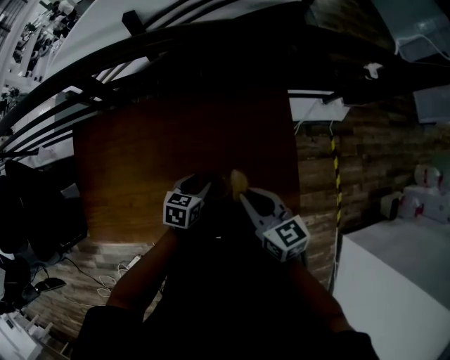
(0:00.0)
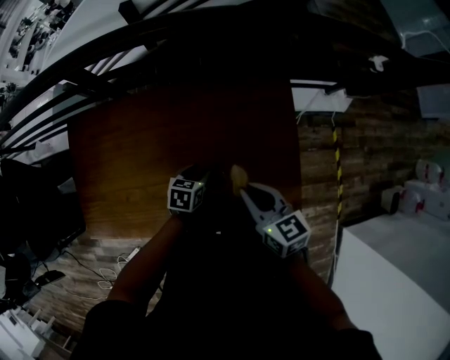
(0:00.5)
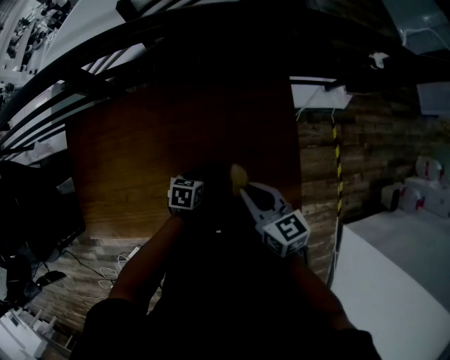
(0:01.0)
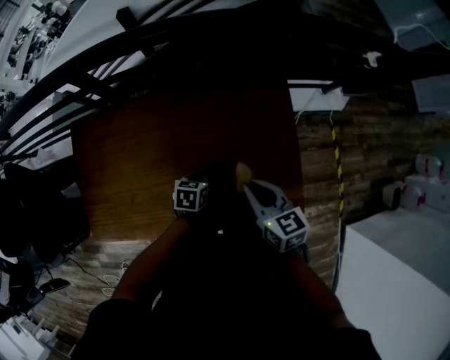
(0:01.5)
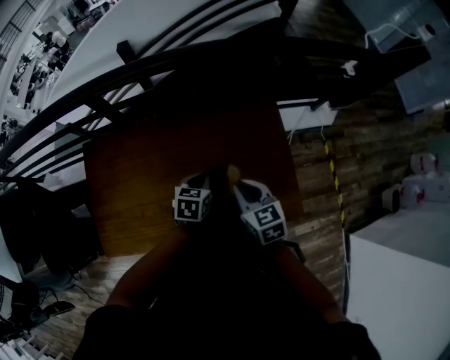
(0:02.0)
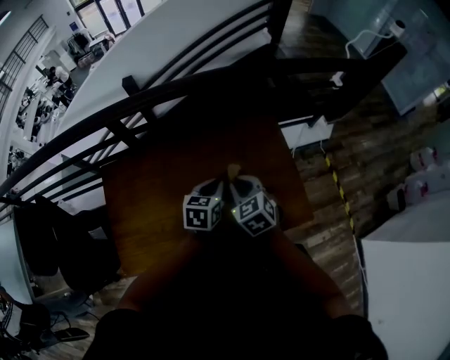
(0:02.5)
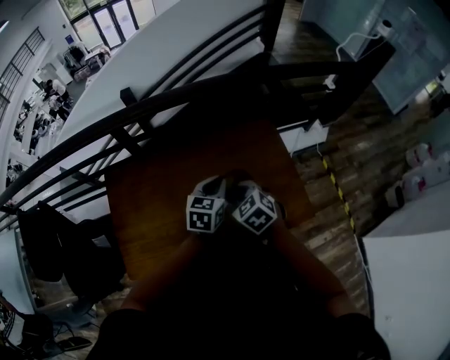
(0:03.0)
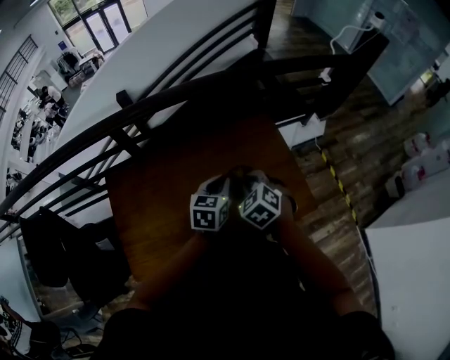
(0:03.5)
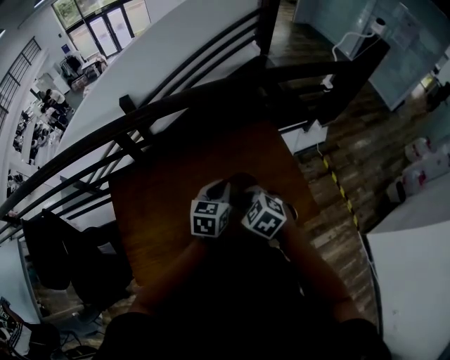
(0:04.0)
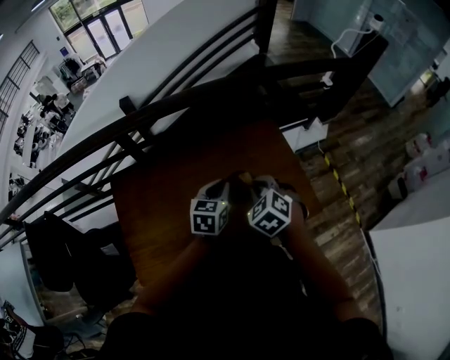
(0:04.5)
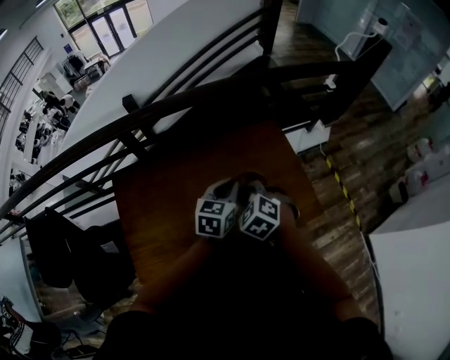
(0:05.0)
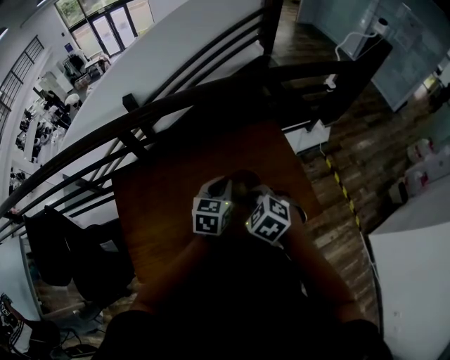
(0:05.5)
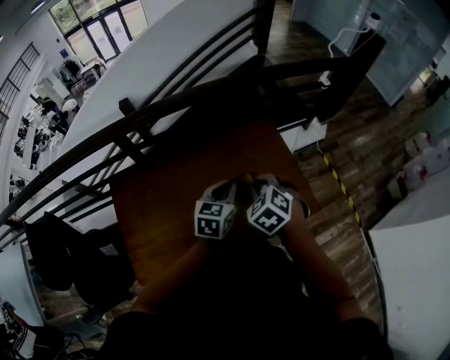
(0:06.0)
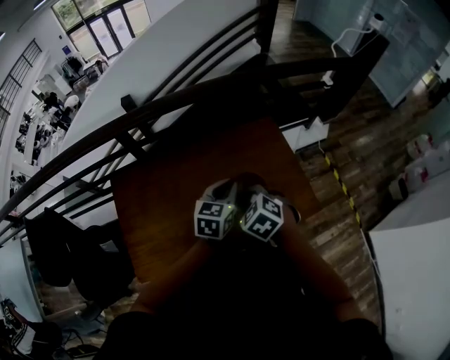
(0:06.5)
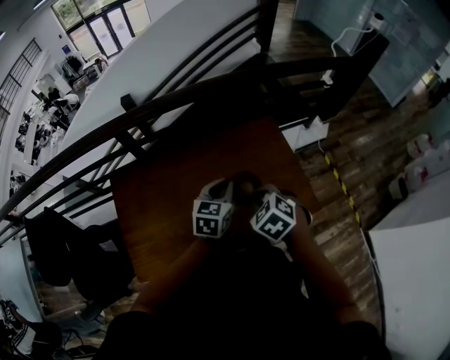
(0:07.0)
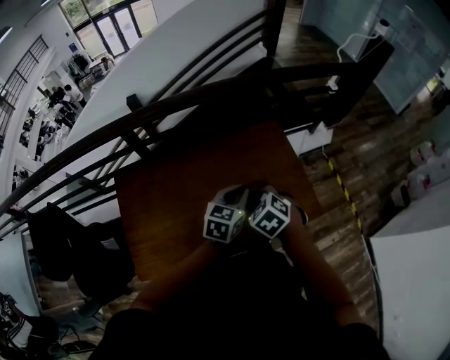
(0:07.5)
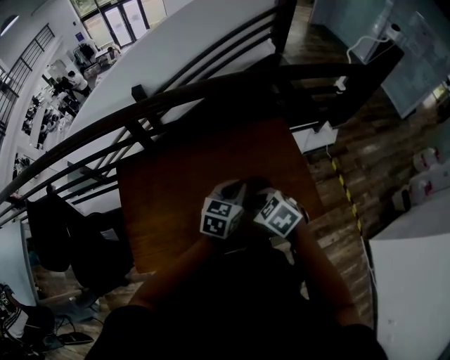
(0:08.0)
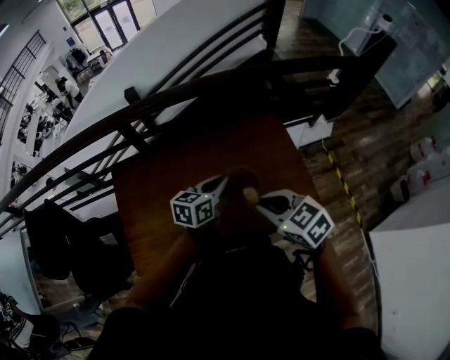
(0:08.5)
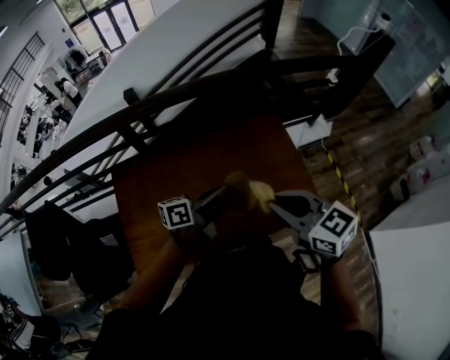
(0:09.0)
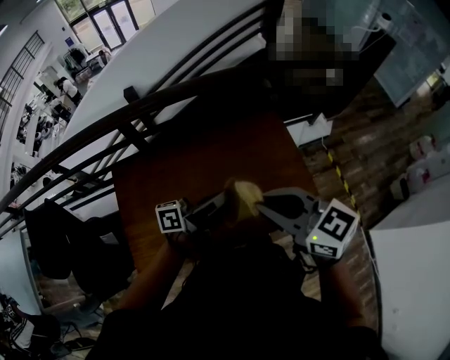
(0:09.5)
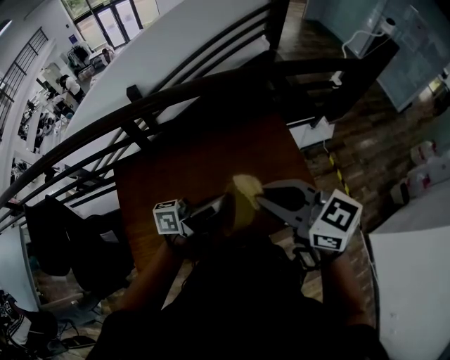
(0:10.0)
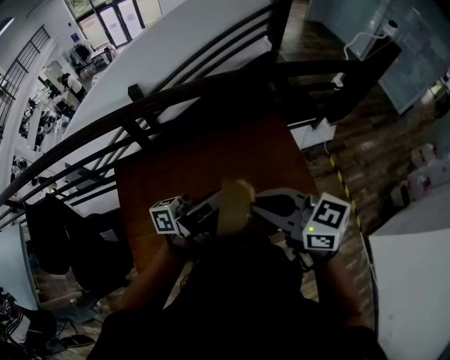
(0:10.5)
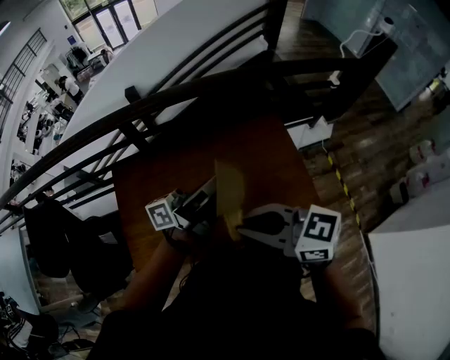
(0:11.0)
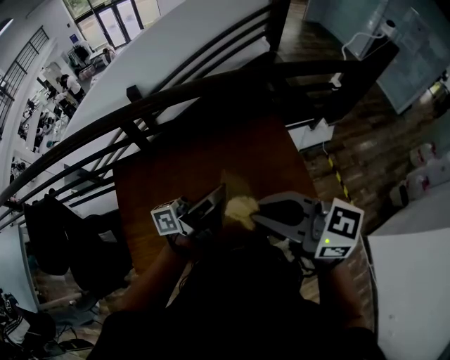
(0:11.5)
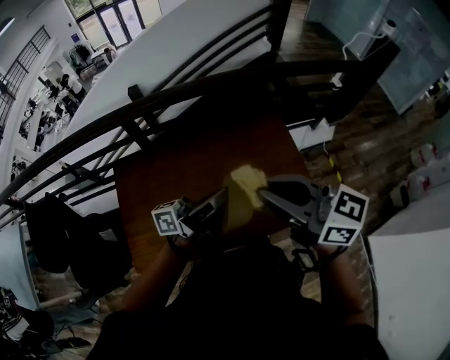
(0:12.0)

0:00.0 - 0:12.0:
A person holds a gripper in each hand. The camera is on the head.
0:00.0 - 0:02.0: The left gripper heads upward, covering roughly 5 cm, and closes up.
0:02.0 - 0:04.0: The right gripper moves to the left, backward and upward, roughly 10 cm, and turns by about 30 degrees, while the left gripper moves upward, approximately 15 cm, and turns by some 20 degrees.
0:04.0 - 0:06.0: The right gripper travels to the right by some 5 cm.
0:06.0 - 0:08.0: The right gripper travels backward by roughly 5 cm, and changes its angle by some 20 degrees.
0:08.0 - 0:10.0: The left gripper goes about 10 cm upward and backward, and tilts its fingers roughly 50 degrees upward; the right gripper shifts some 20 cm upward, and points its fingers some 40 degrees further upward.

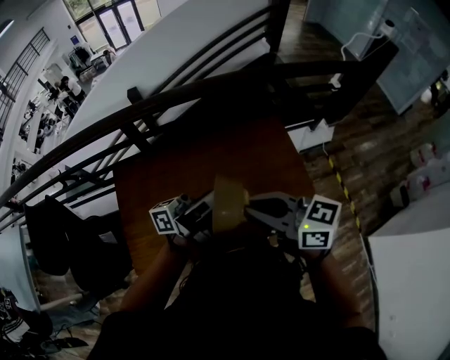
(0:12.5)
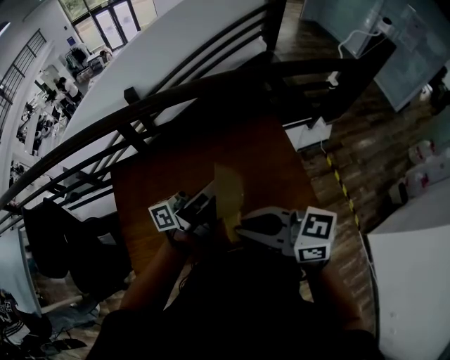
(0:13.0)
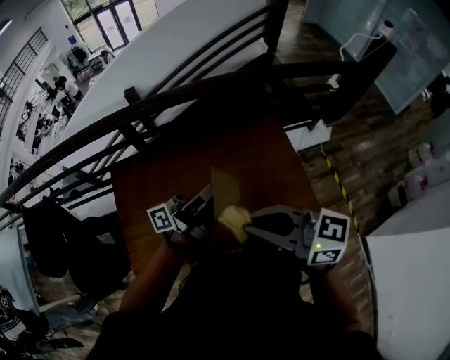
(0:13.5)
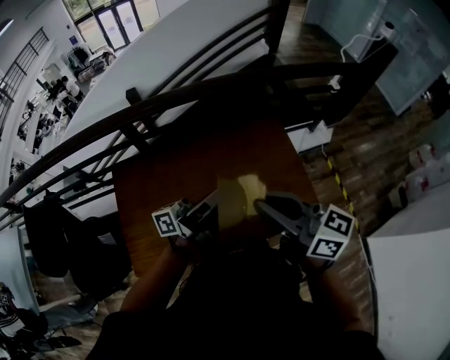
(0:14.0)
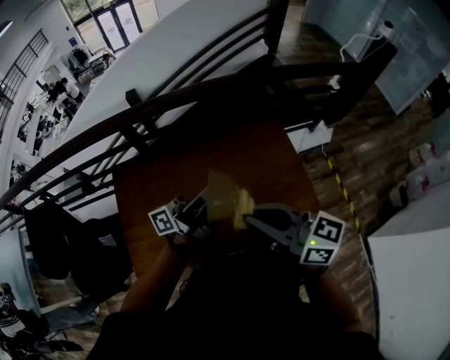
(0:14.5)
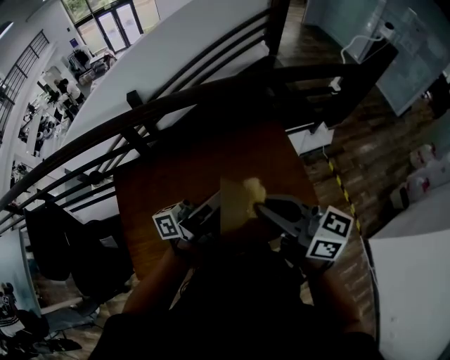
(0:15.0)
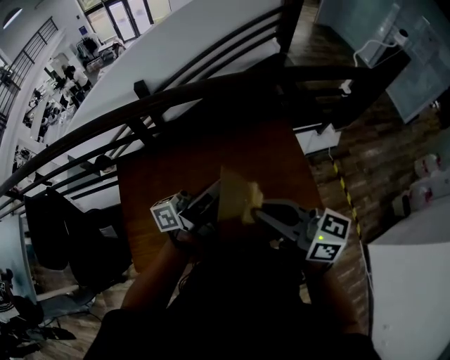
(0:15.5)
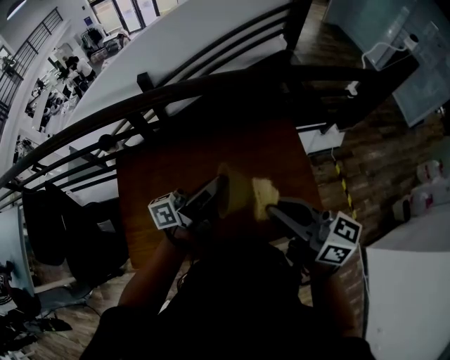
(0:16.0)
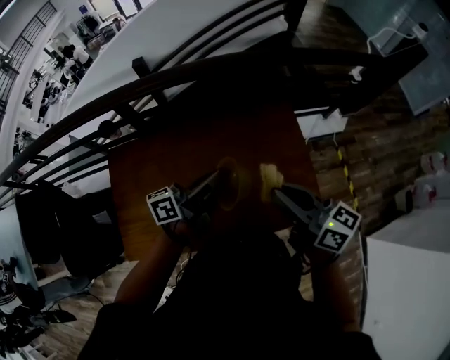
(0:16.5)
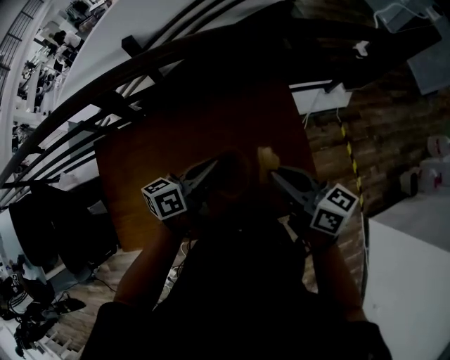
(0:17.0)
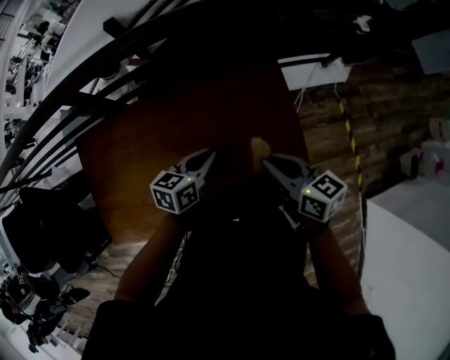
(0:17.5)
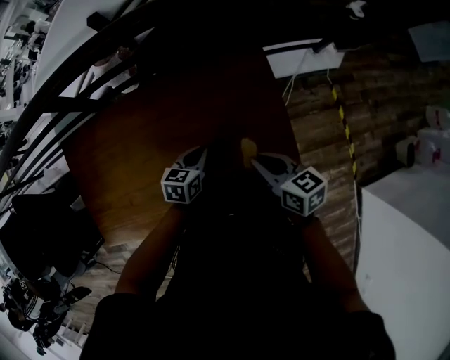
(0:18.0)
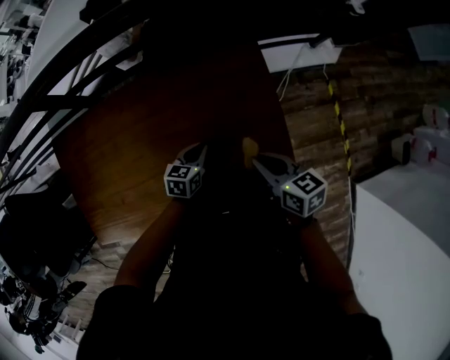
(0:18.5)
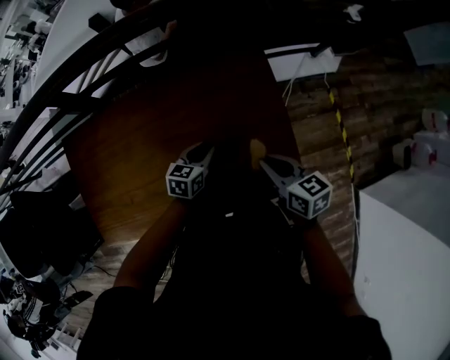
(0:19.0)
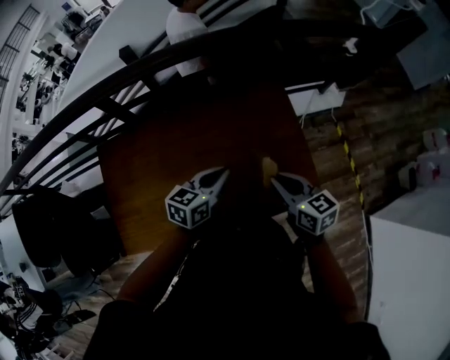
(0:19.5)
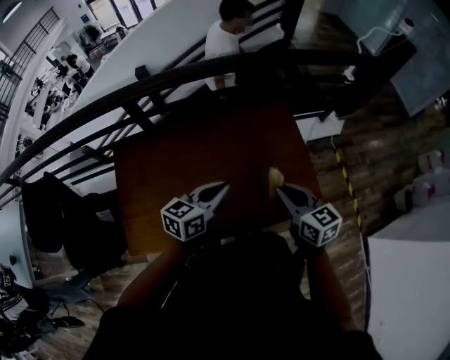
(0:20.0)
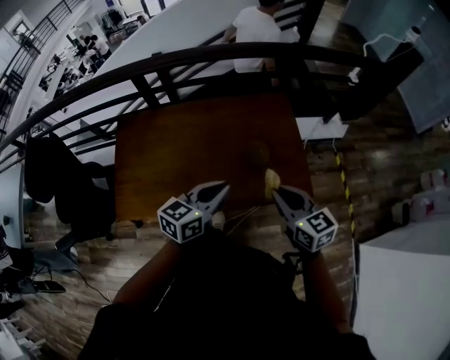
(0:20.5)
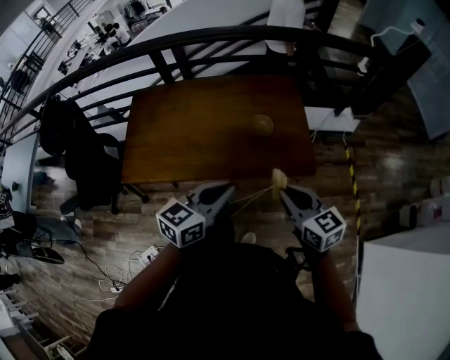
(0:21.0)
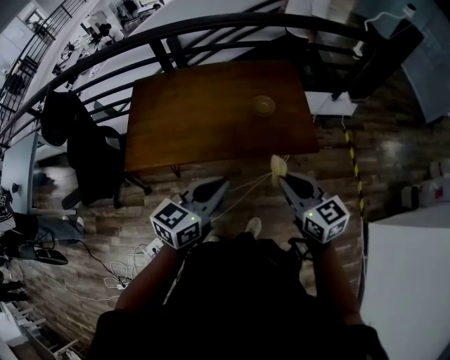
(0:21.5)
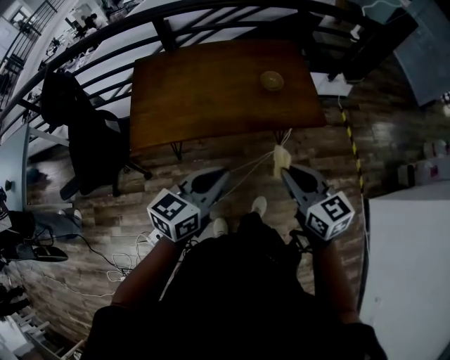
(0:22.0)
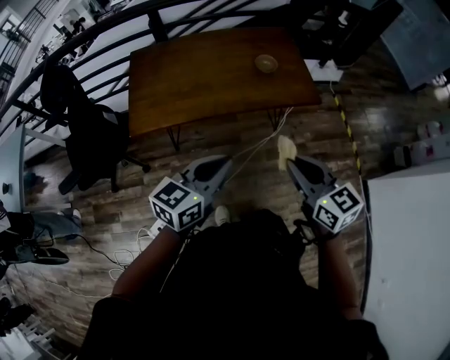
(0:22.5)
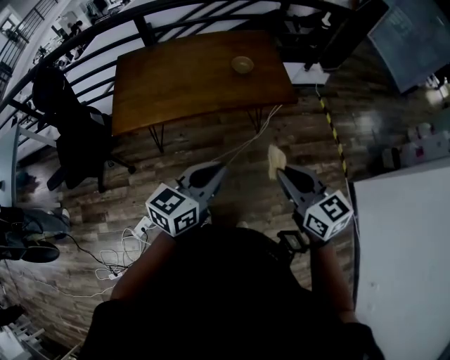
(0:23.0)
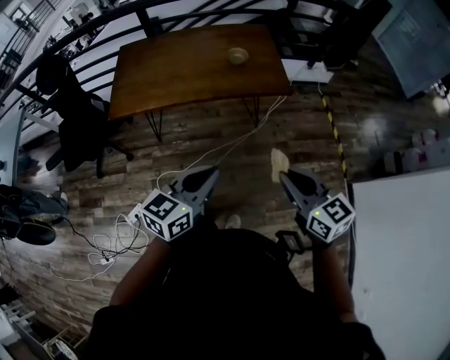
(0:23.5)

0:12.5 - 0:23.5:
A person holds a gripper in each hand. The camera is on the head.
0:12.5 - 0:14.5: The grippers stay close to where they were, moving slightly.
0:14.5 - 0:16.0: The grippers move only a little.
0:16.0 - 0:18.0: The right gripper heads downward, to the right and forward, covering about 40 cm, and tilts its fingers roughly 30 degrees downward; the left gripper shifts some 40 cm downward and to the right, and angles its fingers downward, by approximately 70 degrees.
0:18.0 - 0:20.0: Both grippers travel together upward, backward and to the left, about 25 cm. The right gripper rotates some 20 degrees. Meanwhile the left gripper turns by about 30 degrees.
0:20.0 - 0:21.5: The two grippers go approximately 30 cm backward.
0:21.5 - 0:23.5: Both grippers travel together backward, approximately 25 cm.

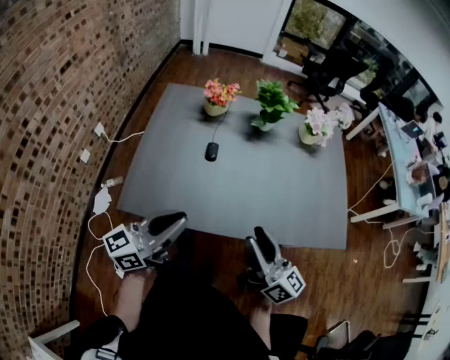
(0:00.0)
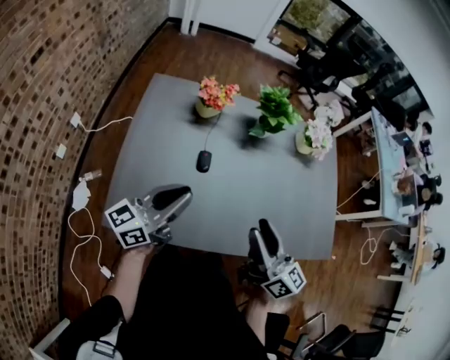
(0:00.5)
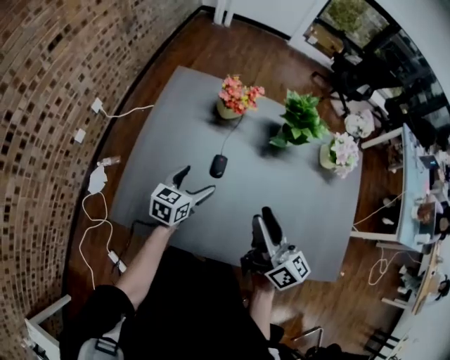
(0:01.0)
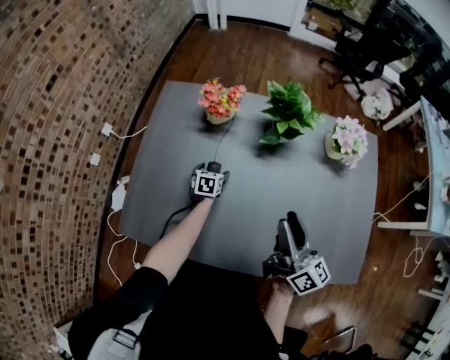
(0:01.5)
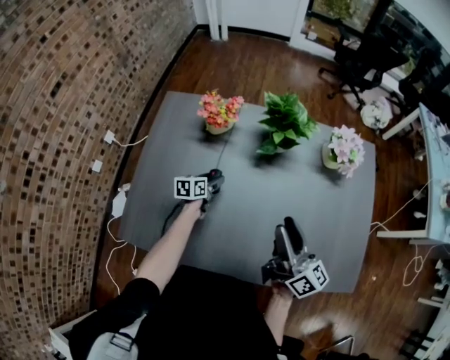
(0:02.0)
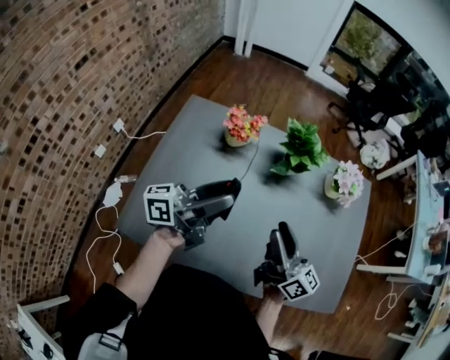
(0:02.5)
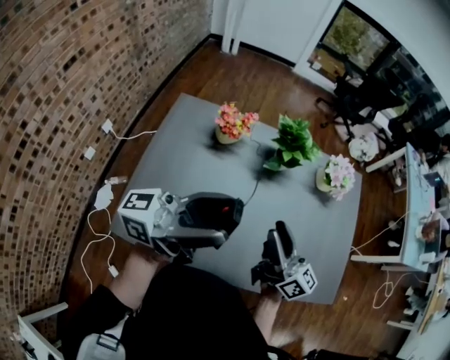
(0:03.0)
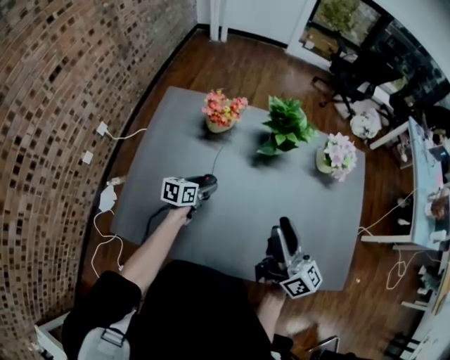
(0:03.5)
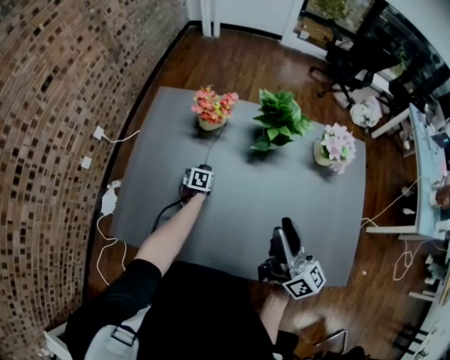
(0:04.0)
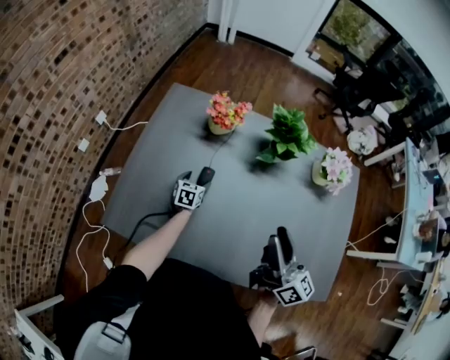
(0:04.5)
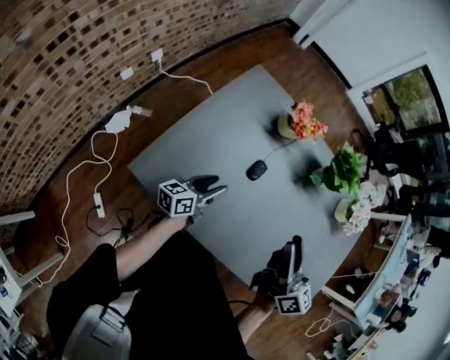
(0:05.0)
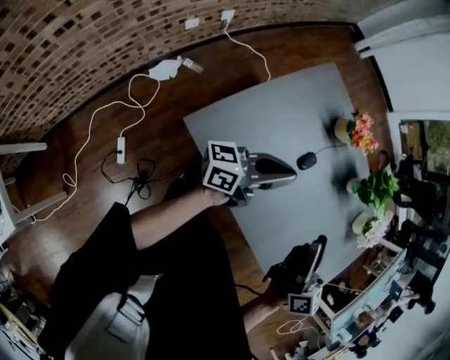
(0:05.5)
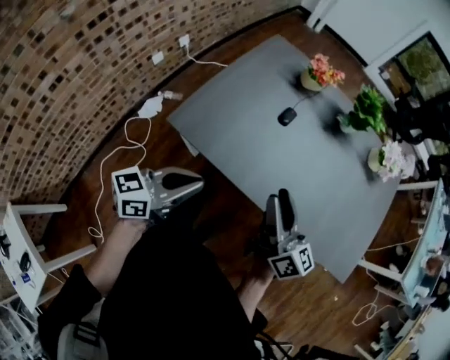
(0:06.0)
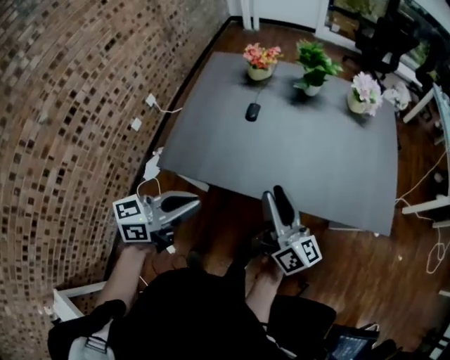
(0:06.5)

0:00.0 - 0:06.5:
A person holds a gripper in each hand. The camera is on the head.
0:00.0 - 0:02.0: The right gripper goes roughly 30 cm forward. Meanwhile the left gripper is displaced forward and downward by approximately 60 cm, tips its fingers downward by some 50 degrees, and opens up.
0:02.0 - 0:04.5: The left gripper moves about 50 cm upward and comes back, and turns by approximately 30 degrees.
0:04.5 - 0:06.5: The left gripper goes roughly 60 cm backward and upward, tilts its fingers approximately 40 degrees upward, and closes its fingers, while the right gripper is displaced backward and to the left by roughly 25 cm.
